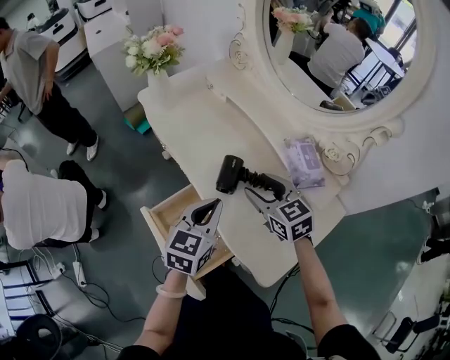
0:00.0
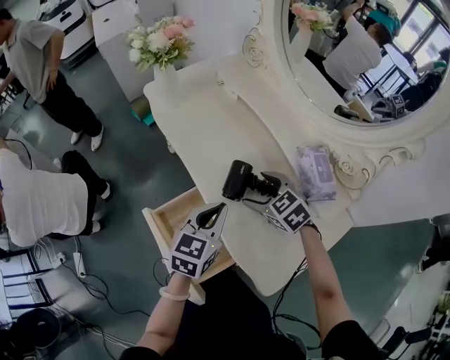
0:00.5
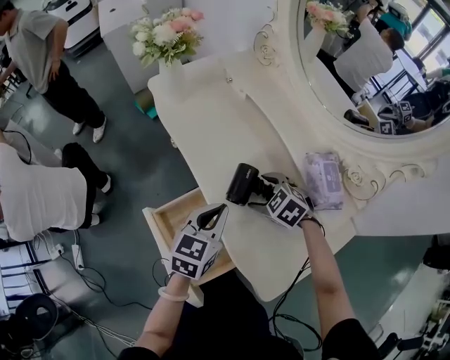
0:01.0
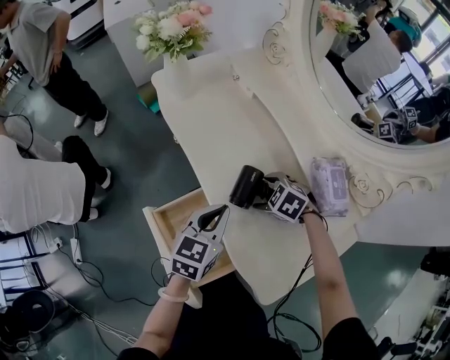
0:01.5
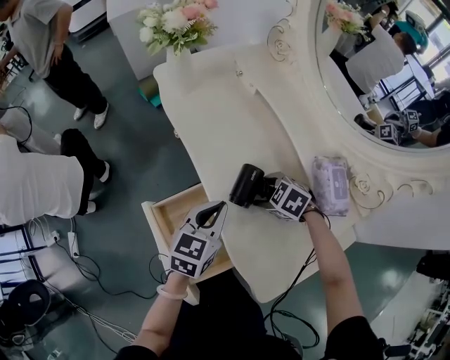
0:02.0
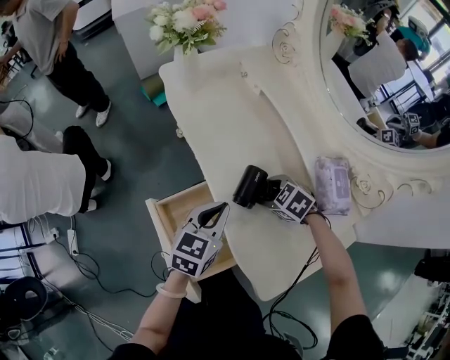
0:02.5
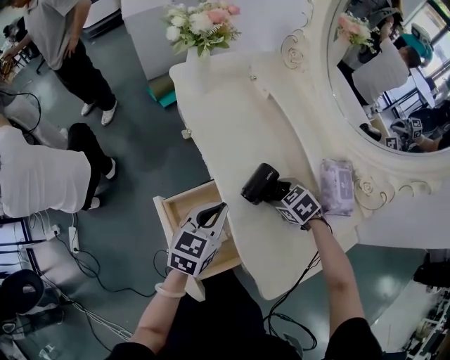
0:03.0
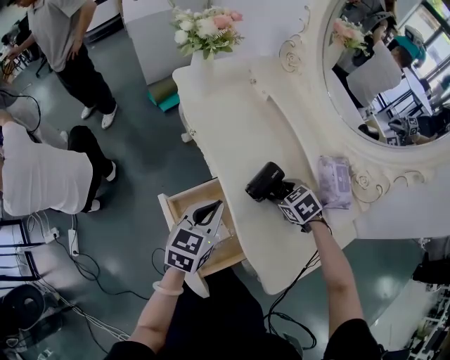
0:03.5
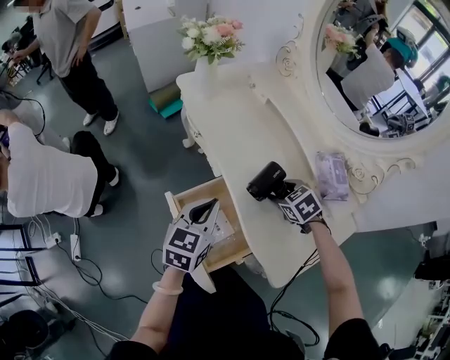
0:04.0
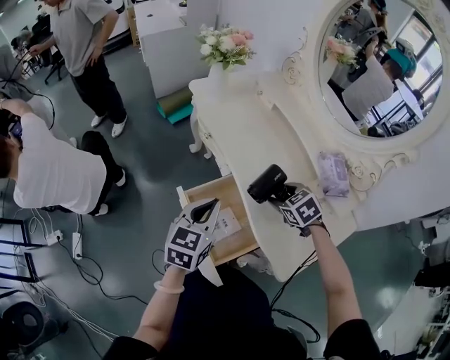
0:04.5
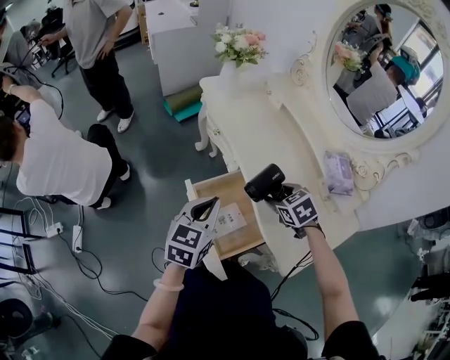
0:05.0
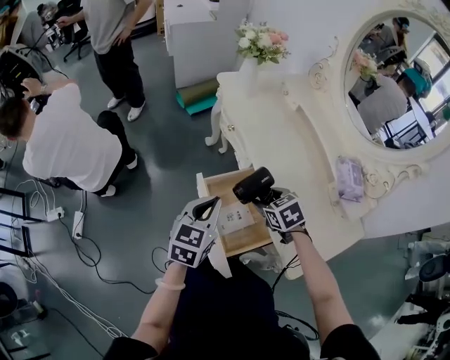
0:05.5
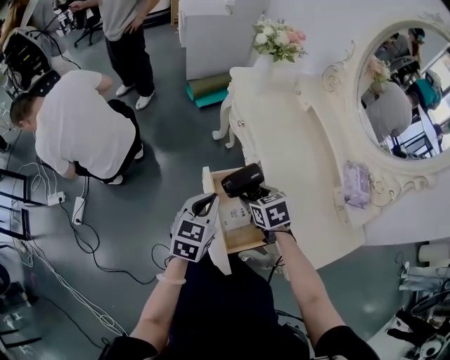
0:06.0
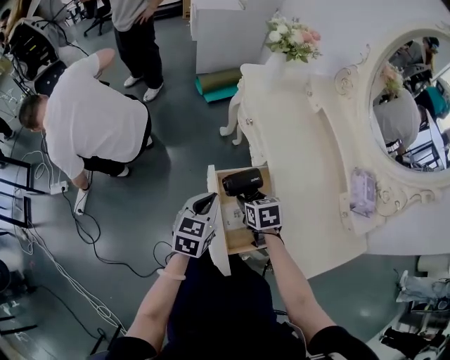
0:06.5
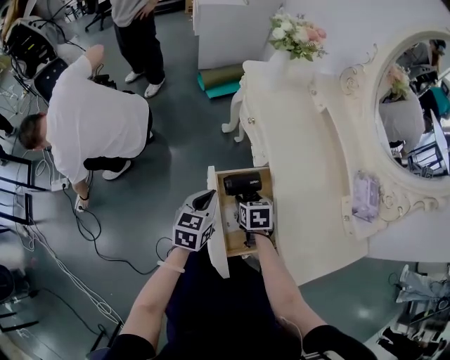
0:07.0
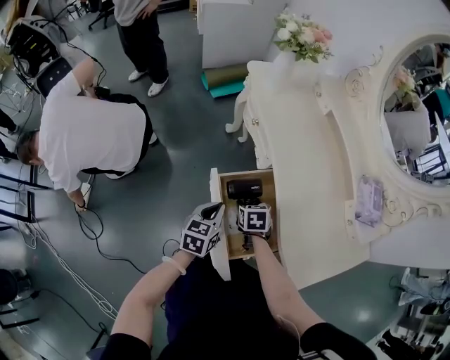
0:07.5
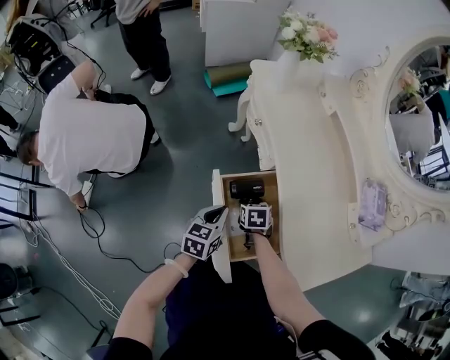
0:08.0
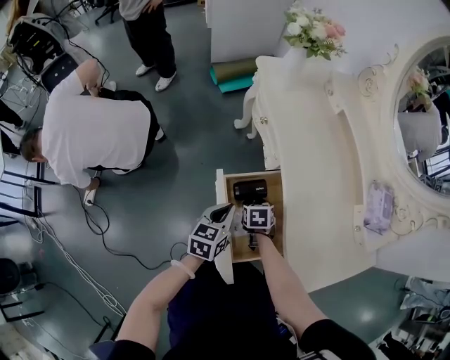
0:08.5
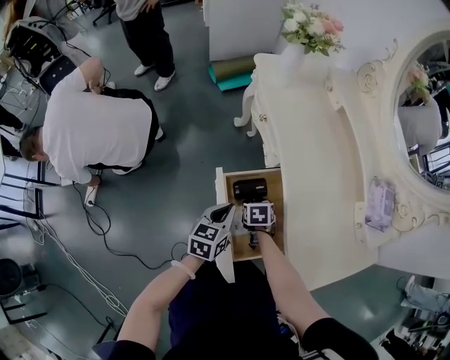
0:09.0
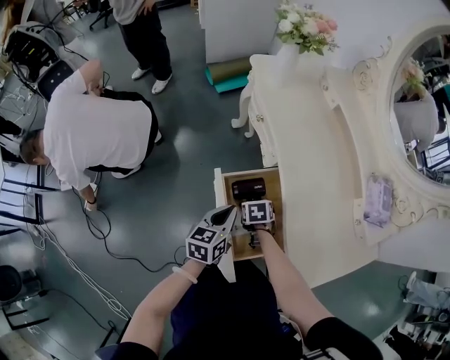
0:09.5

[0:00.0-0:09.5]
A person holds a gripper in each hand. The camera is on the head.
0:00.0 to 0:02.0: The right gripper shifts roughly 15 cm downward, and points its fingers about 40 degrees further downward. The left gripper goes approximately 5 cm downward.
0:02.0 to 0:04.0: The right gripper is displaced upward by roughly 5 cm, and rotates some 30 degrees, while the left gripper shifts about 10 cm to the left.
0:04.0 to 0:05.5: The two grippers go some 15 cm to the left and backward.
0:05.5 to 0:07.5: Both grippers travel together downward, about 15 cm. The right gripper rotates about 20 degrees.
0:07.5 to 0:09.5: The right gripper is displaced downward by some 5 cm.

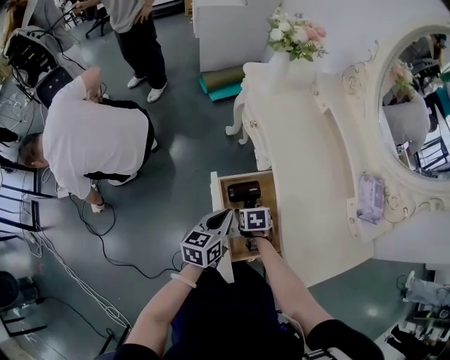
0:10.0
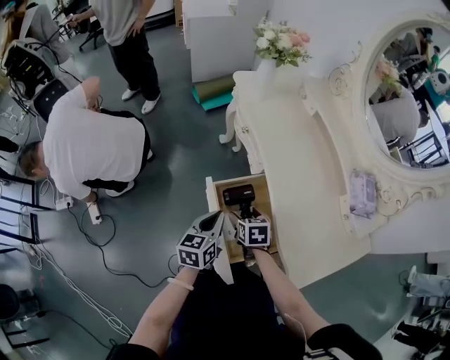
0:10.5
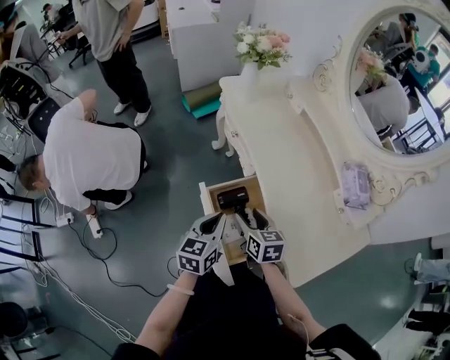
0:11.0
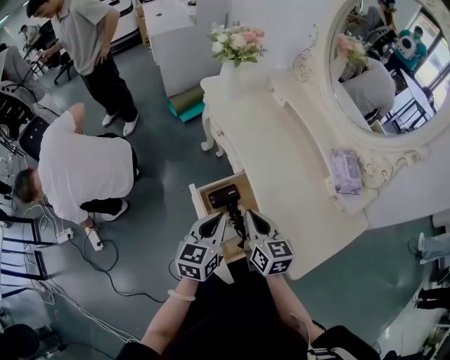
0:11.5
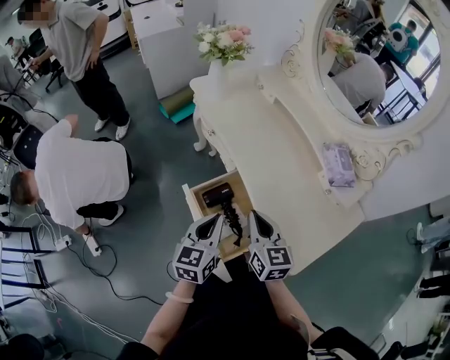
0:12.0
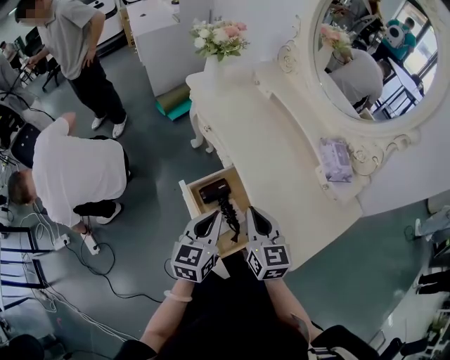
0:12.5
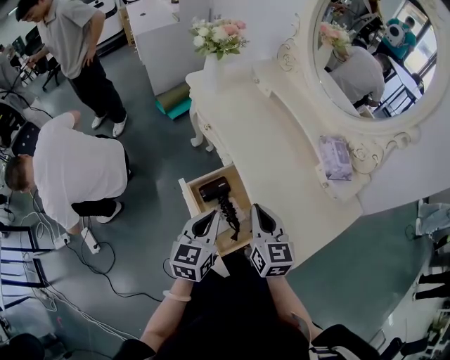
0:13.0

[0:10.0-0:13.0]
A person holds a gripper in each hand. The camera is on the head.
0:10.0 to 0:11.5: The left gripper moves upward, roughly 10 cm. The right gripper is displaced upward by about 20 cm, points its fingers some 50 degrees further upward, and closes its fingers.
0:11.5 to 0:13.0: The right gripper changes place by some 5 cm.

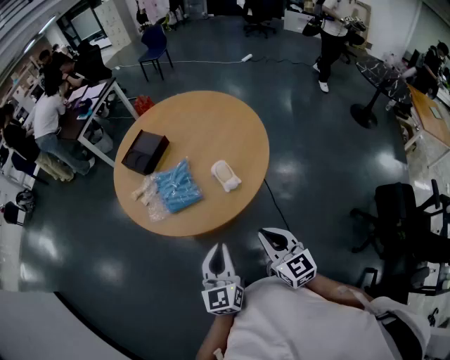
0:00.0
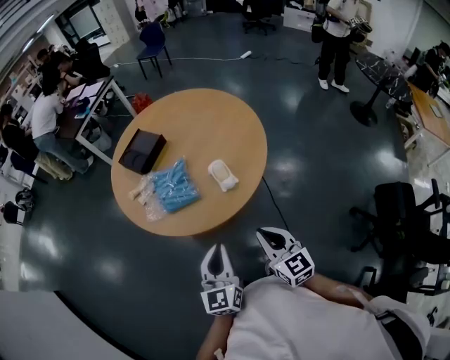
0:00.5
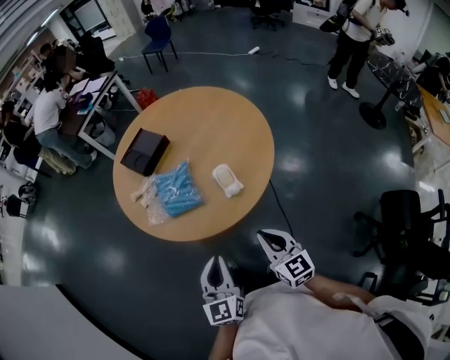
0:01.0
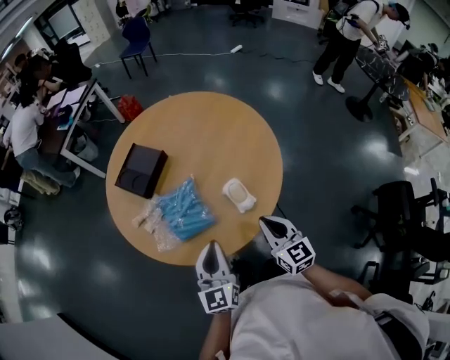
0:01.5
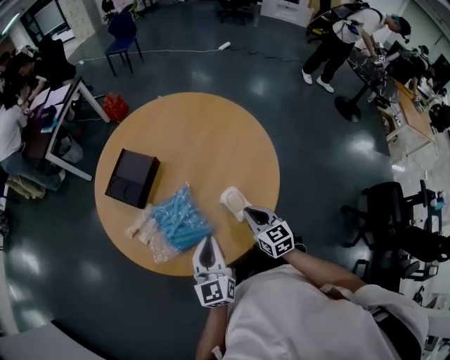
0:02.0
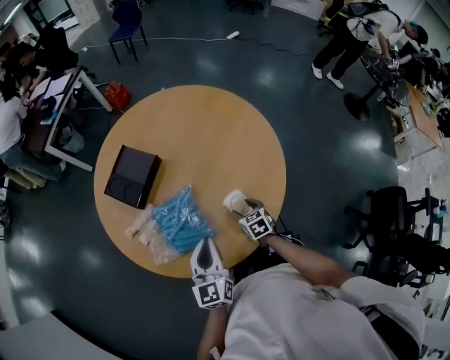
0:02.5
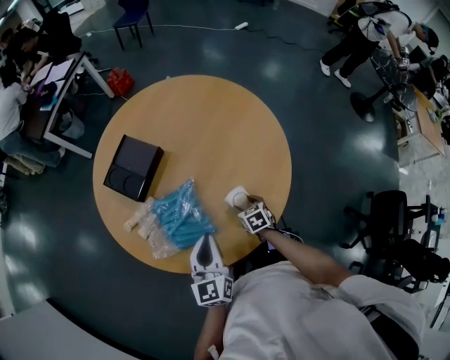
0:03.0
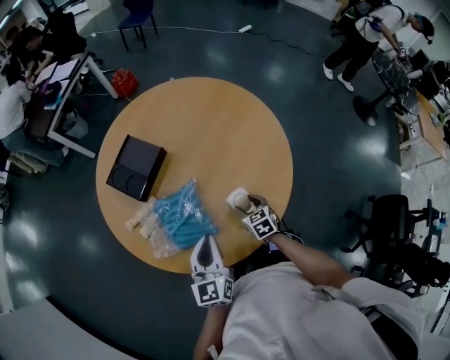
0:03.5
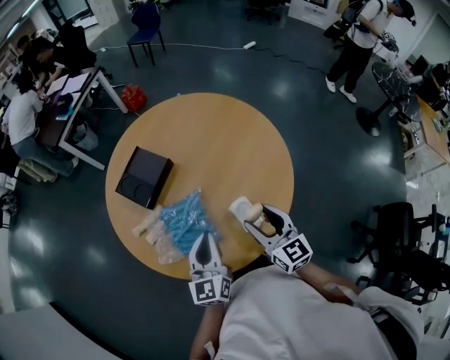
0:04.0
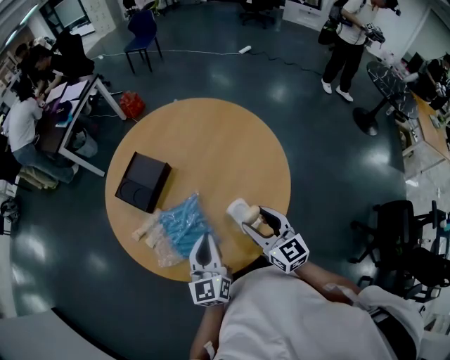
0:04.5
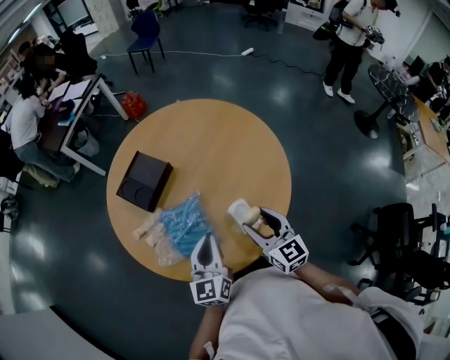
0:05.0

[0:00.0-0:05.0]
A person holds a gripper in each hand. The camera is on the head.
0:00.0 to 0:02.5: The right gripper heads forward and downward, covering some 40 cm, points its fingers roughly 40 degrees further downward, and opens its fingers; the left gripper shifts some 30 cm forward.
0:02.5 to 0:05.0: The right gripper moves upward, roughly 25 cm, and tips its fingers upward by about 40 degrees.

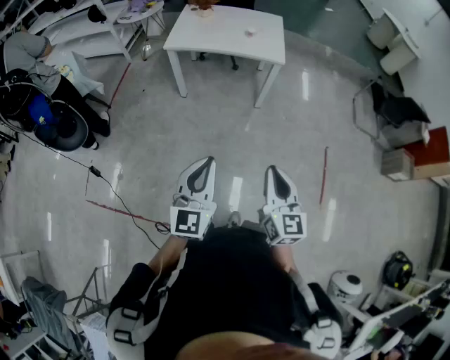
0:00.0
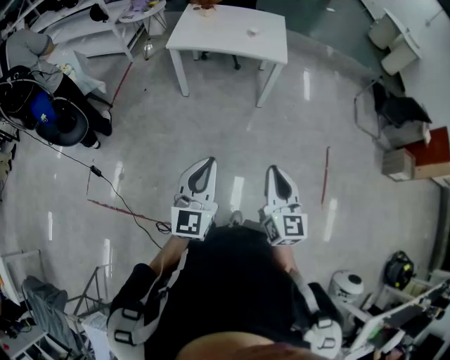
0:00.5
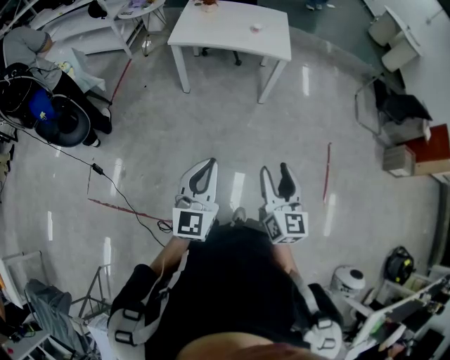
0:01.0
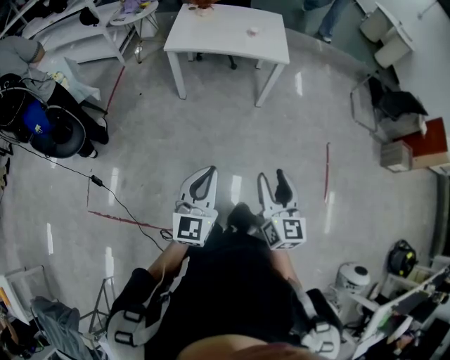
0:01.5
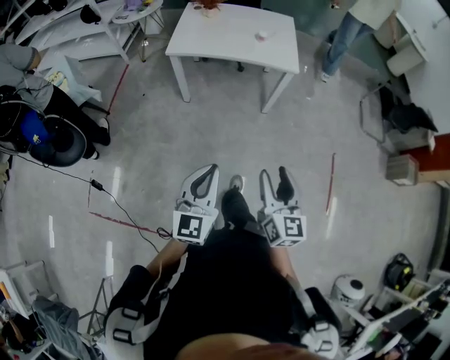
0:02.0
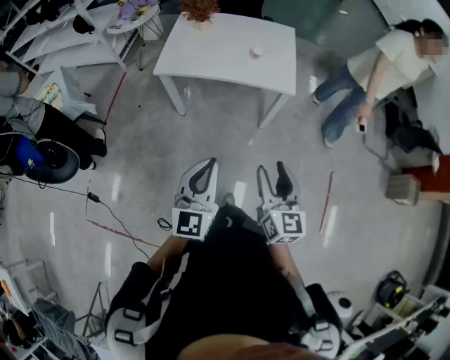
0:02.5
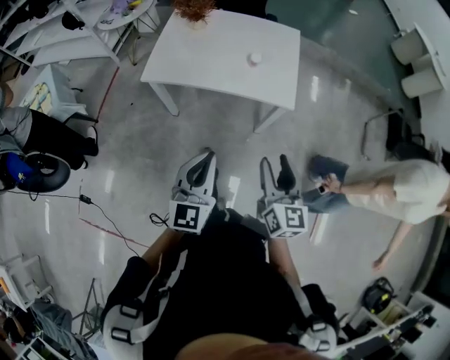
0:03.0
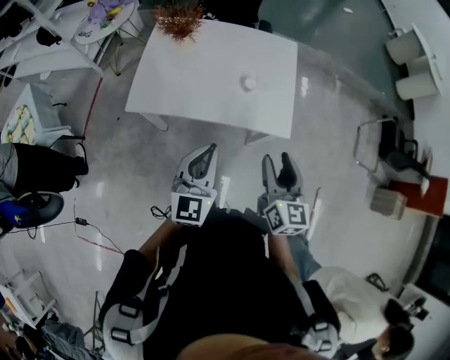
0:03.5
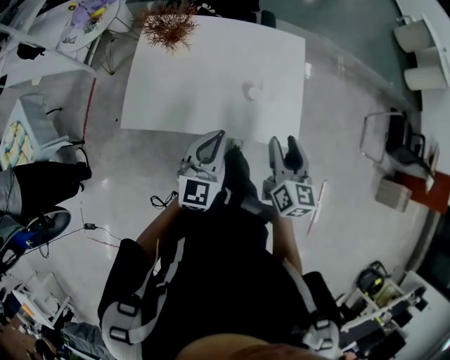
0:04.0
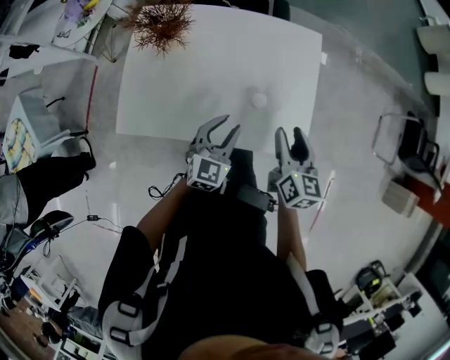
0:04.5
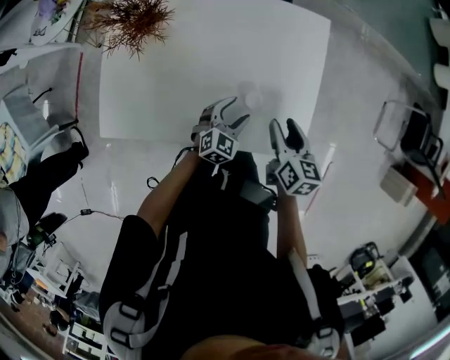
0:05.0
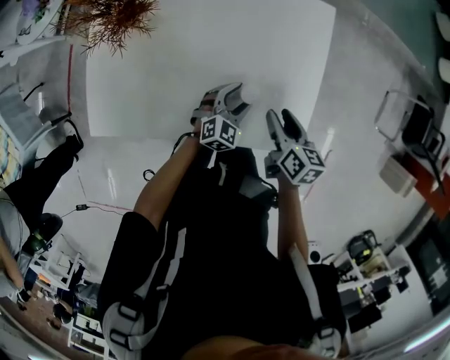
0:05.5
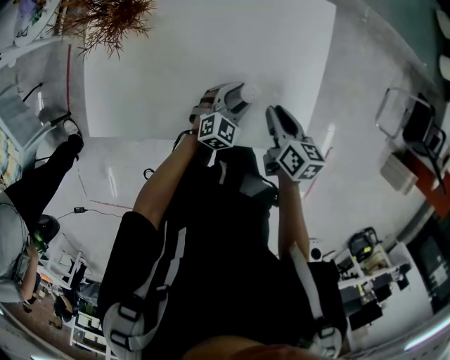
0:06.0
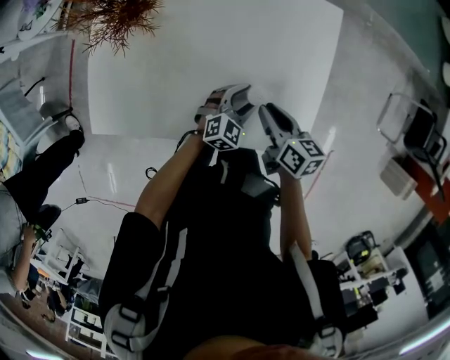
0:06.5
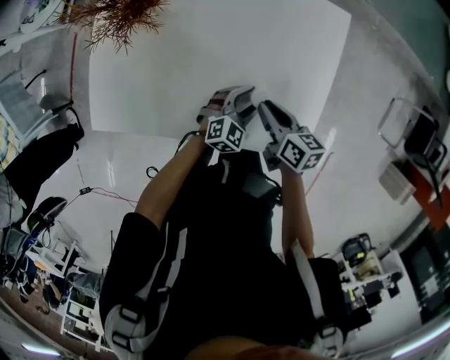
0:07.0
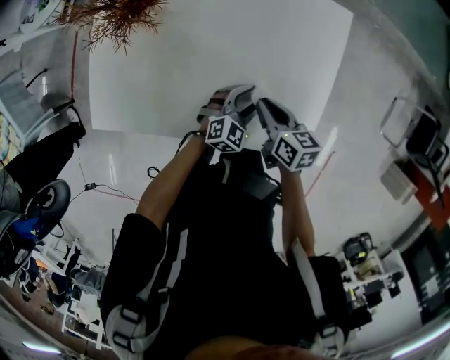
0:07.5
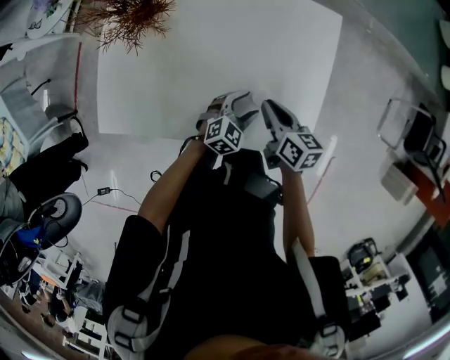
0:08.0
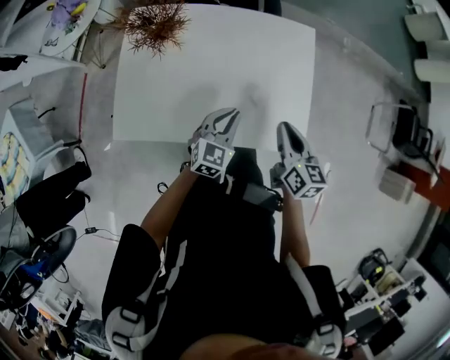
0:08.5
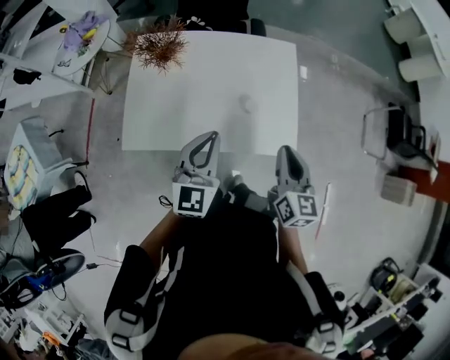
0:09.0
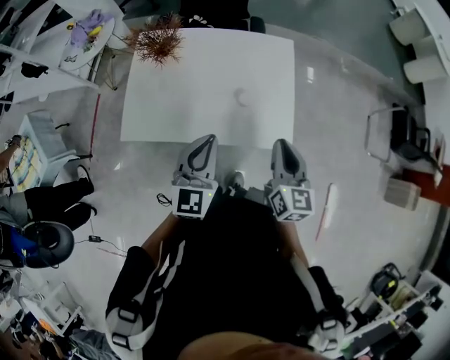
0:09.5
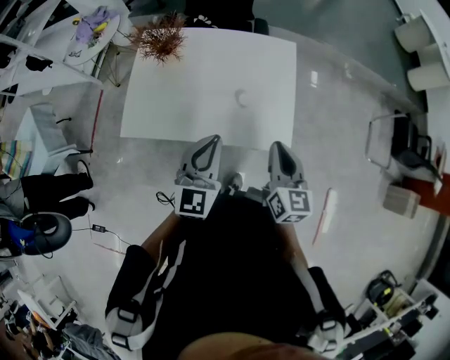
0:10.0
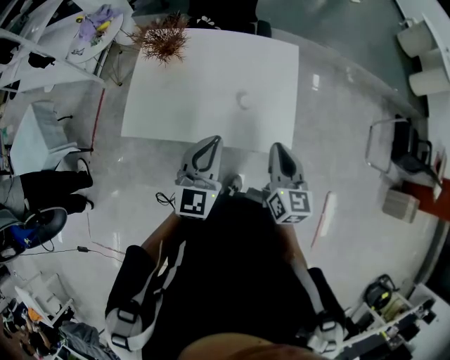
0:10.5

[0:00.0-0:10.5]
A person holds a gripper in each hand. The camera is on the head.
0:00.0 to 0:02.0: The right gripper is displaced forward and to the left by some 15 cm, and opens. Meanwhile the left gripper goes roughly 15 cm forward, to the left and downward.
0:02.0 to 0:04.0: The two grippers travel together, forward, roughly 60 cm.
0:04.0 to 0:06.5: The left gripper goes some 35 cm downward, forward and to the right, changes its angle by some 40 degrees, and opens its fingers. Meanwhile the right gripper is displaced downward and forward by some 25 cm, turns by approximately 40 degrees, and closes up.
0:06.5 to 0:08.5: The left gripper goes approximately 15 cm upward and to the left, rotates roughly 20 degrees, and closes its fingers. The right gripper heads upward and backward, covering roughly 15 cm, and turns by roughly 30 degrees.
0:08.5 to 0:10.5: The left gripper moves upward and backward, about 25 cm, and changes its angle by approximately 20 degrees, while the right gripper is displaced upward and backward by about 15 cm.
